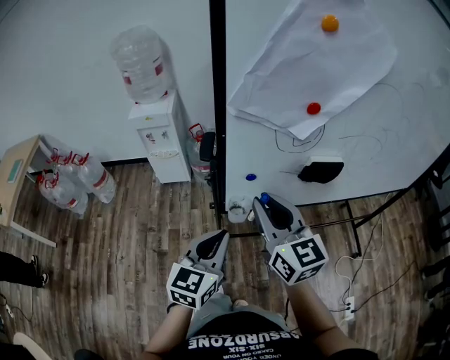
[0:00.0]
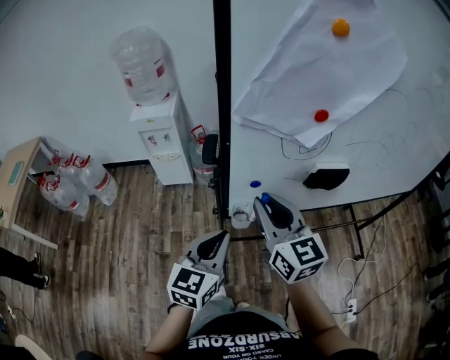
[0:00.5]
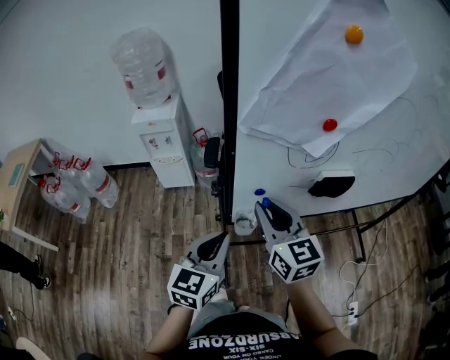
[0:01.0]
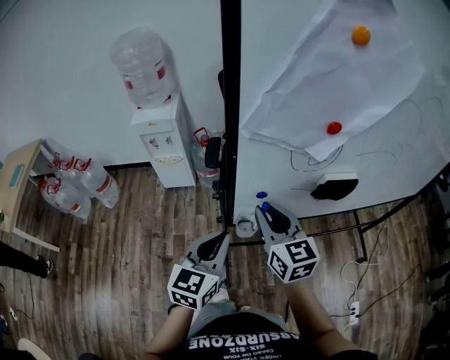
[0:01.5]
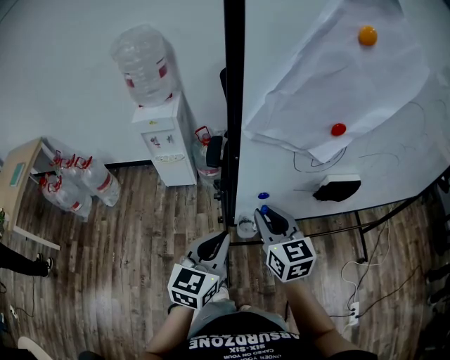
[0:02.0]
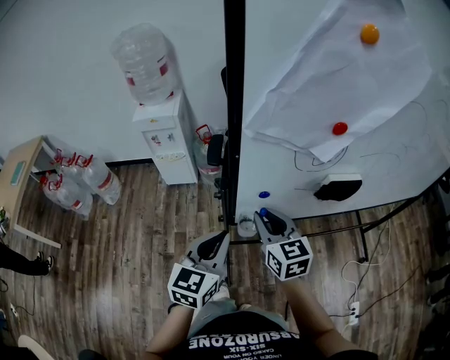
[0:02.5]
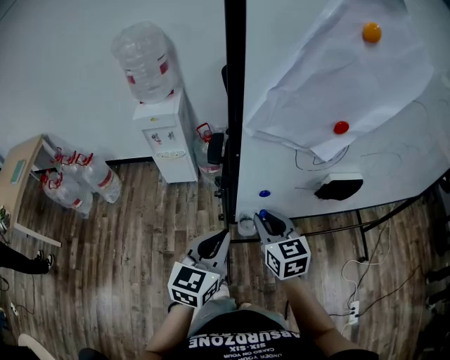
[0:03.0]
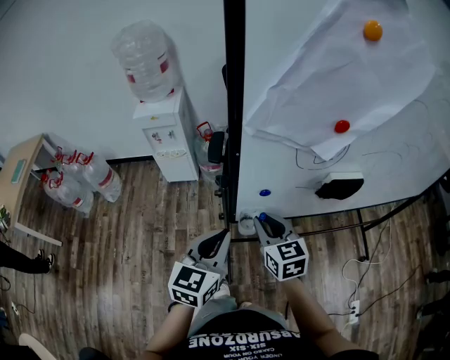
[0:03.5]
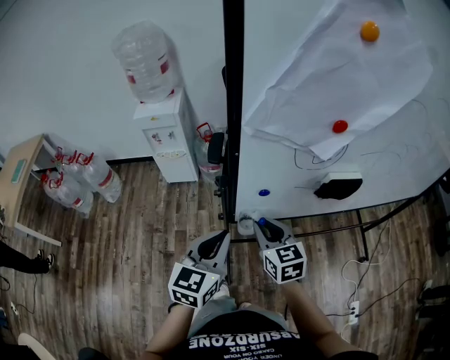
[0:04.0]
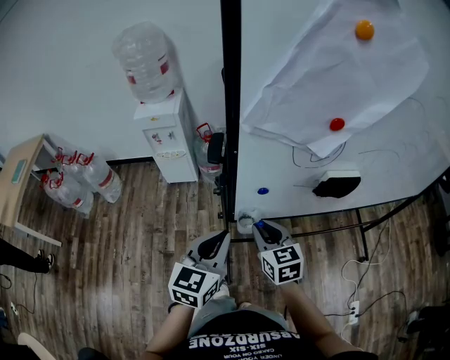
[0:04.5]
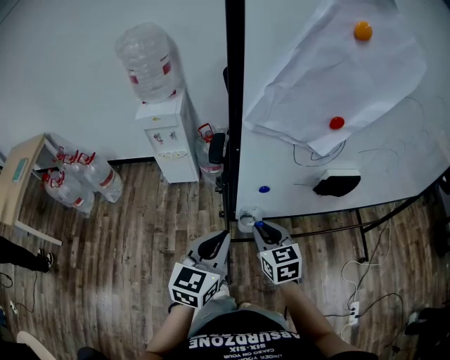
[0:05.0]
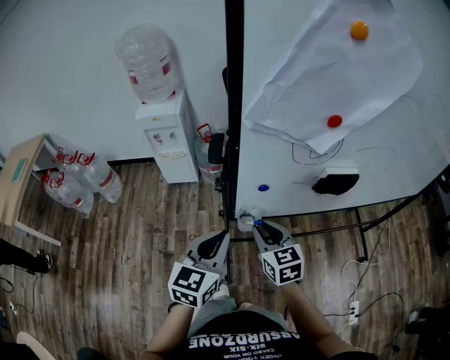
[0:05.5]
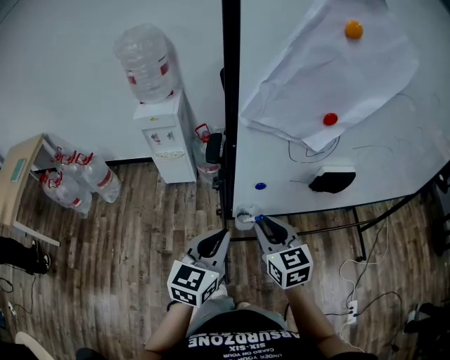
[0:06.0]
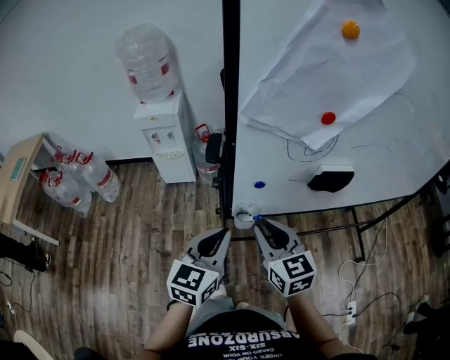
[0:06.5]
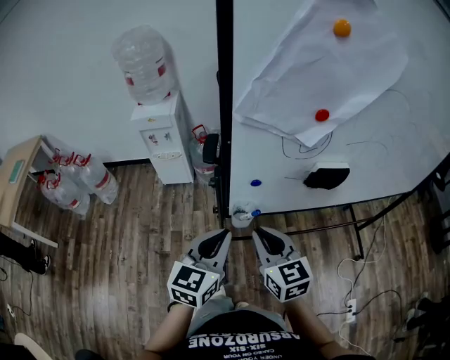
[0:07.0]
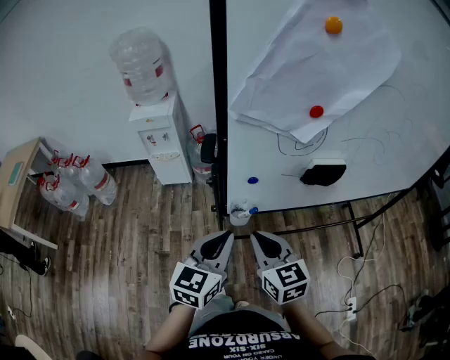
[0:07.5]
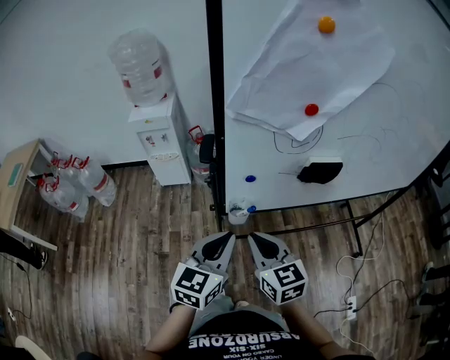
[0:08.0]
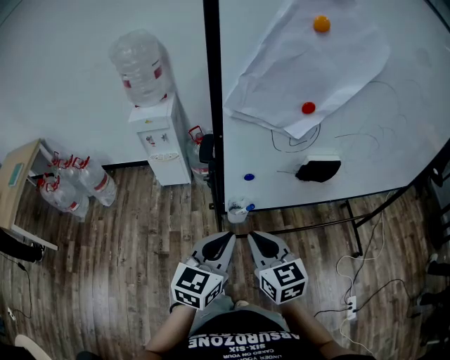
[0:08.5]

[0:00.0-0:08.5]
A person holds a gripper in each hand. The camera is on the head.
0:00.0 to 0:02.0: The right gripper shifts approximately 10 cm downward and forward, while the left gripper goes about 5 cm forward.
0:02.0 to 0:04.0: The right gripper goes roughly 5 cm downward.
0:04.0 to 0:06.5: The right gripper travels upward and backward by approximately 10 cm.
0:06.5 to 0:08.5: The left gripper ends up approximately 5 cm from where it was; the right gripper travels backward by about 5 cm.

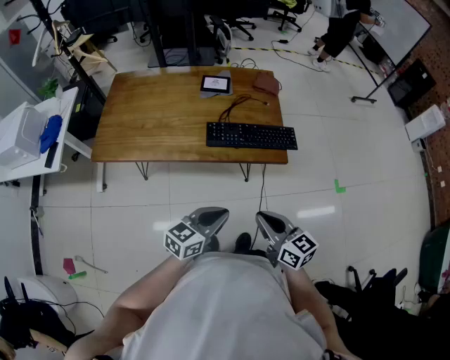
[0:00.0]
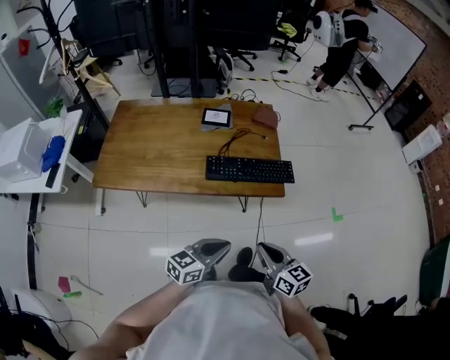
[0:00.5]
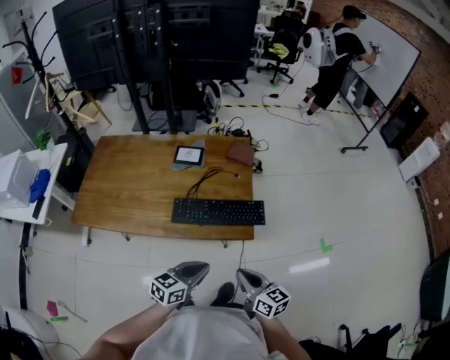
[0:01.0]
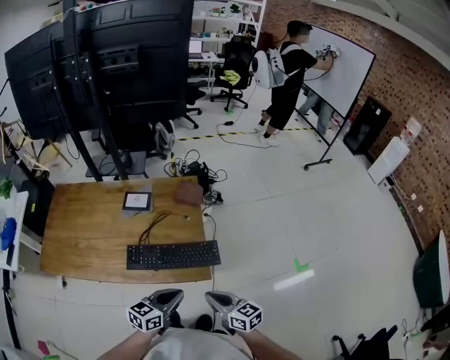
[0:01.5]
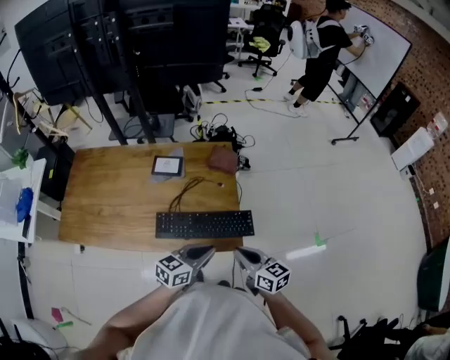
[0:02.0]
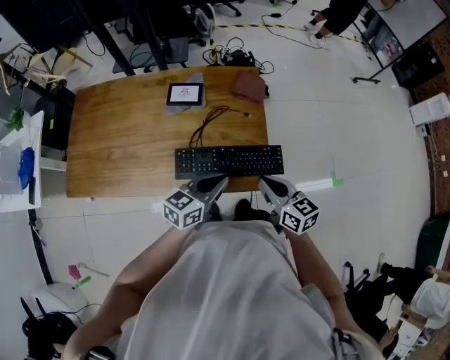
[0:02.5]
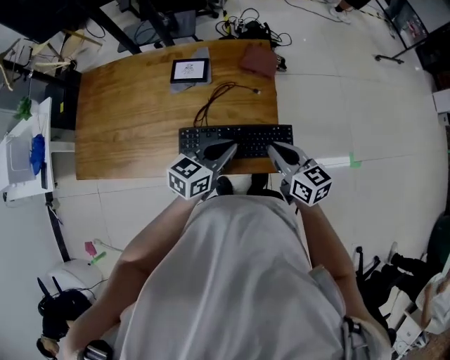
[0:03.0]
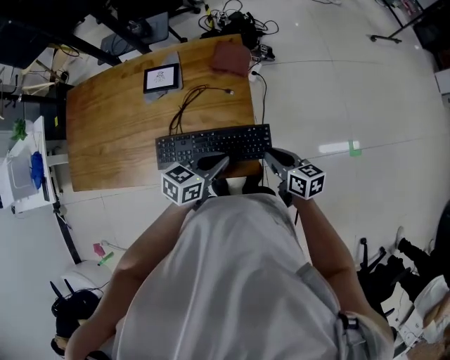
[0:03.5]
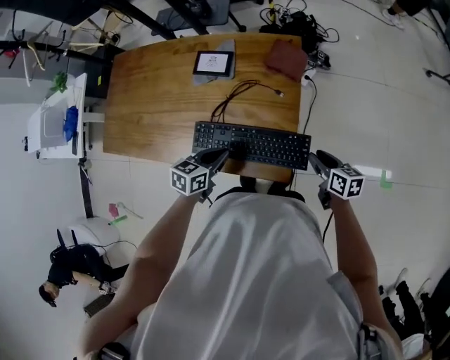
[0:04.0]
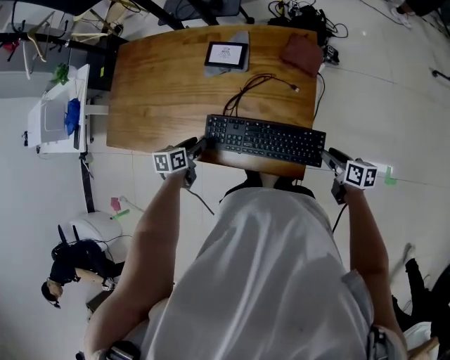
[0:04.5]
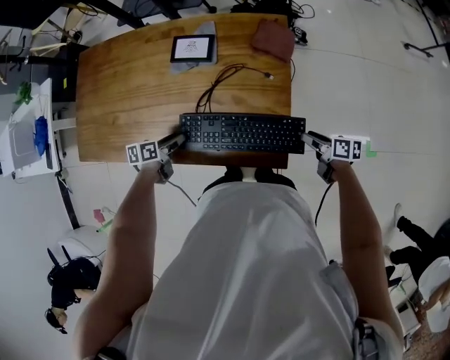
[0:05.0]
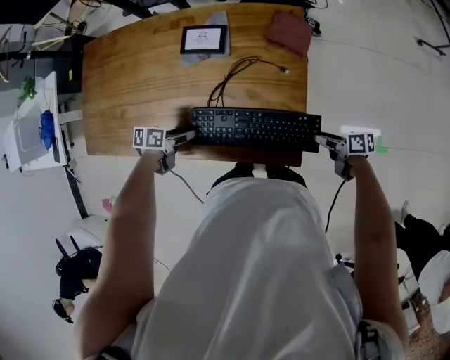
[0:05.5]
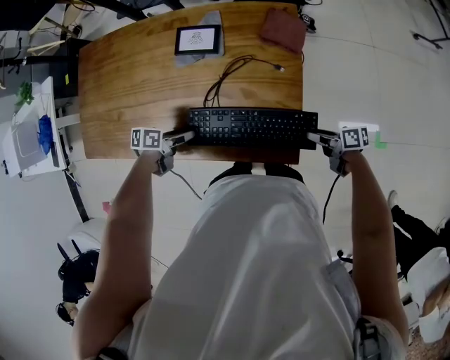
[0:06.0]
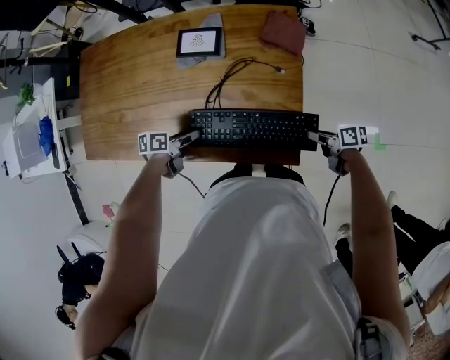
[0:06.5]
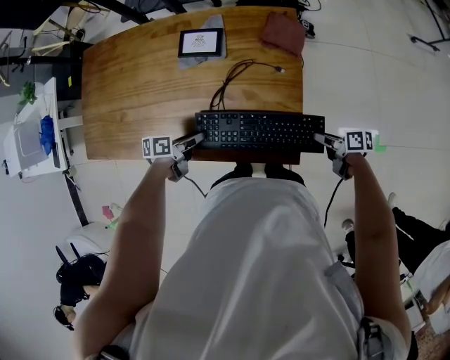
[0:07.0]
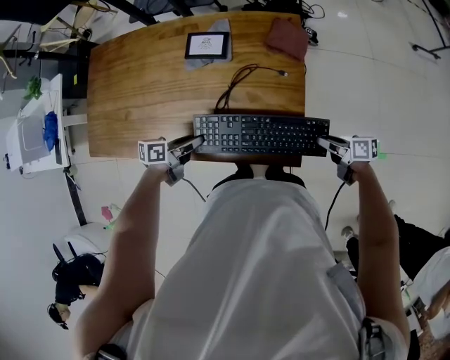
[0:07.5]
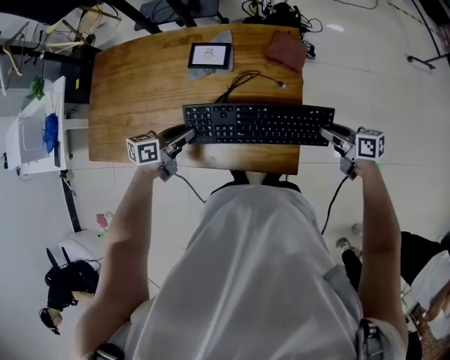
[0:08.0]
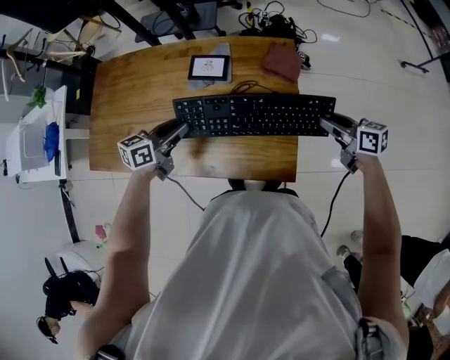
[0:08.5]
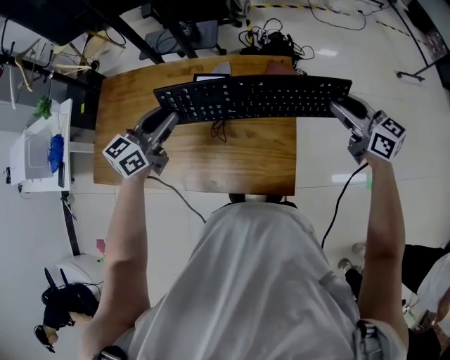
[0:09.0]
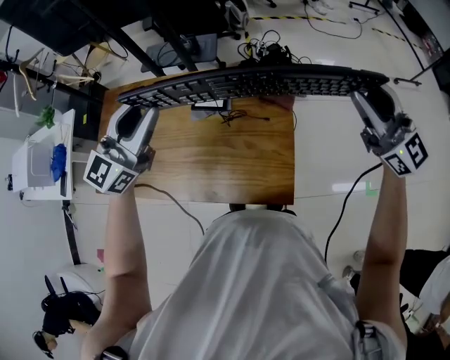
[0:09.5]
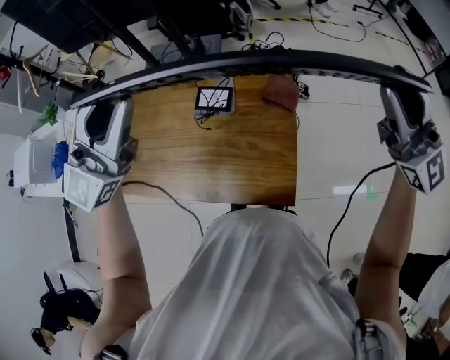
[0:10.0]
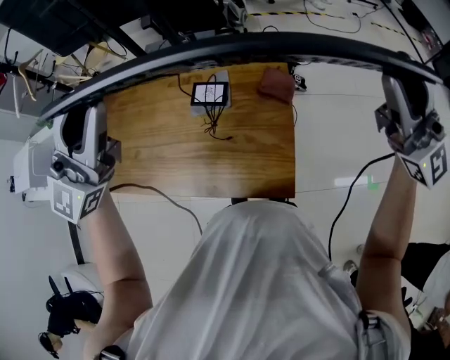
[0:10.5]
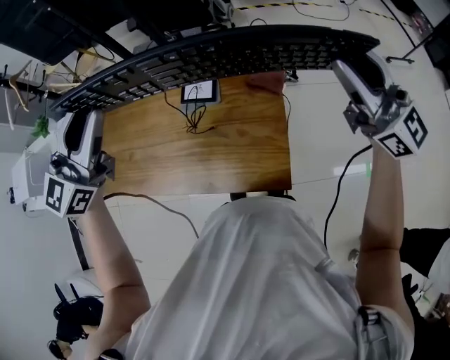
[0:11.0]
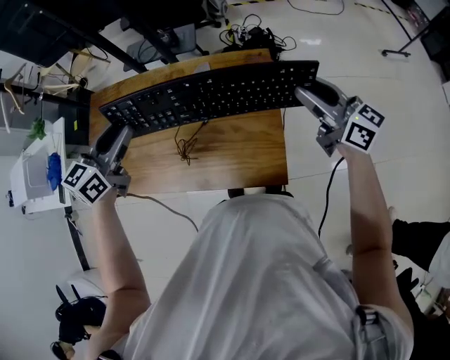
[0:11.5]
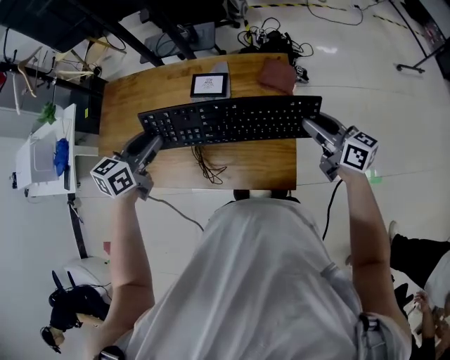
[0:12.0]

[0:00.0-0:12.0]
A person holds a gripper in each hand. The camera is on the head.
0:00.0 to 0:02.0: Both grippers travel together forward and to the right, some 25 cm.
0:02.0 to 0:04.0: The right gripper is displaced downward, forward and to the right by about 20 cm, swivels some 30 degrees, and opens its fingers, while the left gripper moves left and right over approximately 10 cm, changing direction 2 times, and changes its angle by approximately 30 degrees.
0:04.0 to 0:06.0: The right gripper changes place by roughly 5 cm, and changes its angle by about 30 degrees, while the left gripper moves roughly 15 cm, swivels approximately 40 degrees, and opens up.
0:06.0 to 0:08.0: Both grippers move upward, roughly 10 cm. The left gripper swivels roughly 30 degrees, and closes its fingers. Meanwhile the right gripper turns by roughly 30 degrees.
0:08.0 to 0:10.0: The grippers both shift upward by approximately 40 cm. The right gripper twists some 70 degrees counterclockwise, seen from behind, while the left gripper rotates around the line of its fingers by approximately 70 degrees, clockwise from behind.
0:10.0 to 0:12.0: The grippers both shift downward by approximately 30 cm. The right gripper twists roughly 60 degrees clockwise, seen from behind. Meanwhile the left gripper points its fingers approximately 40 degrees further downward.

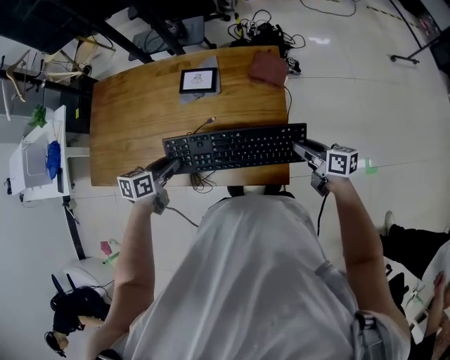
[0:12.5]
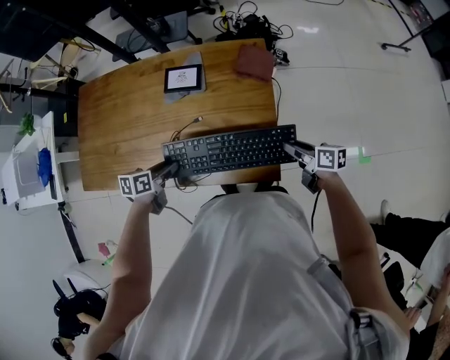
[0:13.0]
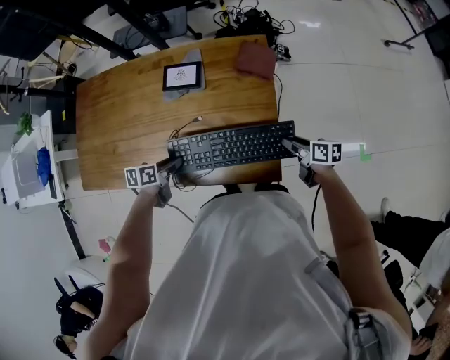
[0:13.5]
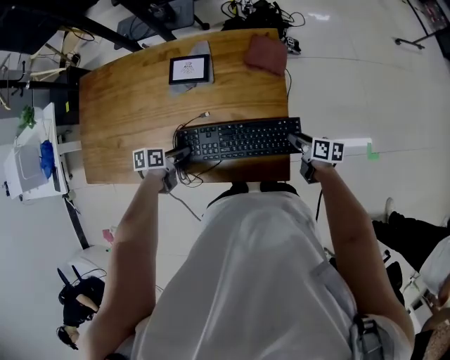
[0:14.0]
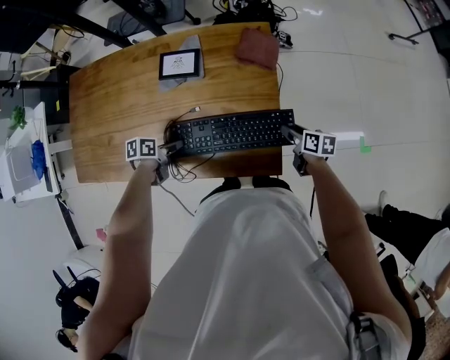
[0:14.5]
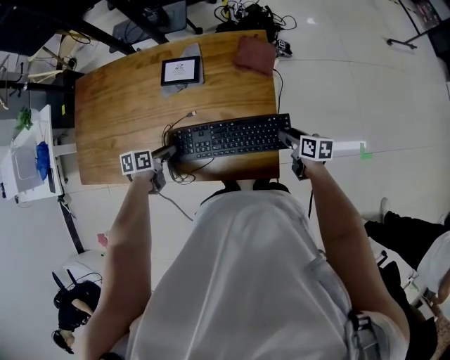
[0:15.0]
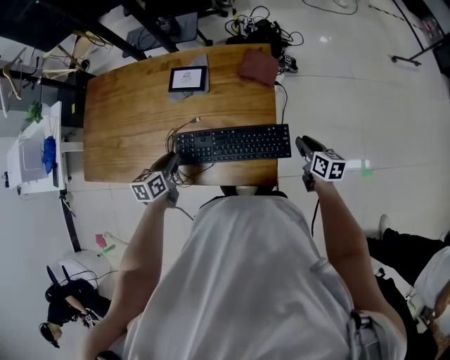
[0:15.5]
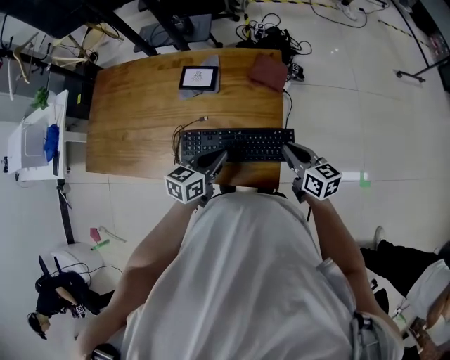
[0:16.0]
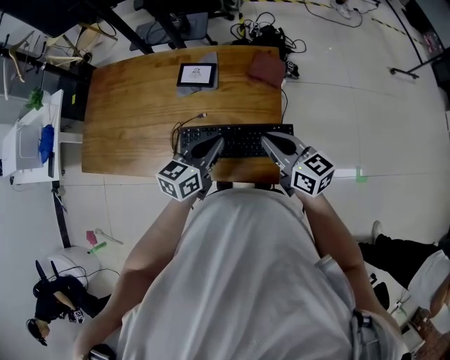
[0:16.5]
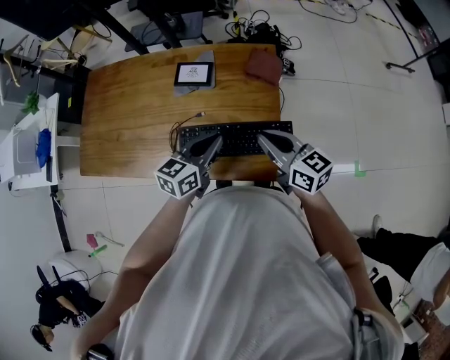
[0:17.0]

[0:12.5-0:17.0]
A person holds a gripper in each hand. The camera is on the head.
0:12.5 to 0:14.5: Both grippers move downward, some 15 cm. The right gripper rotates about 20 degrees. The left gripper turns by about 30 degrees.
0:14.5 to 0:17.0: The left gripper heads upward and to the right, covering approximately 25 cm, tips its fingers upward by some 30 degrees, and closes its fingers. The right gripper heads upward and to the left, covering some 25 cm, points its fingers roughly 30 degrees further upward, and closes up.

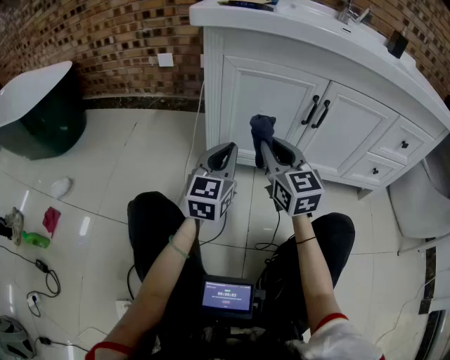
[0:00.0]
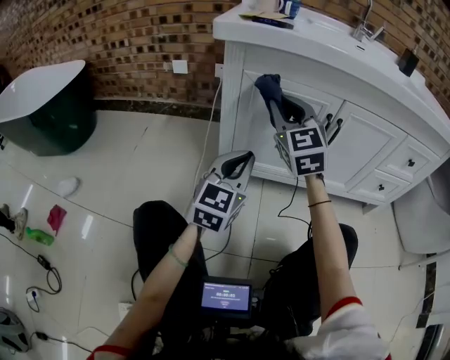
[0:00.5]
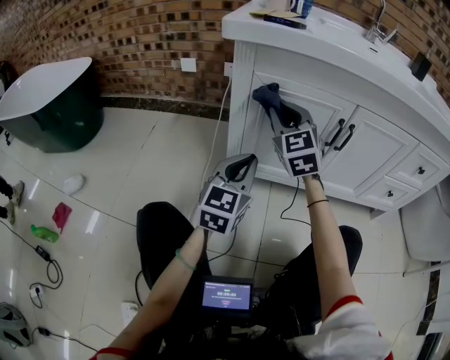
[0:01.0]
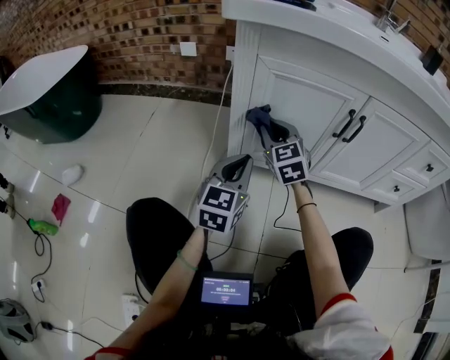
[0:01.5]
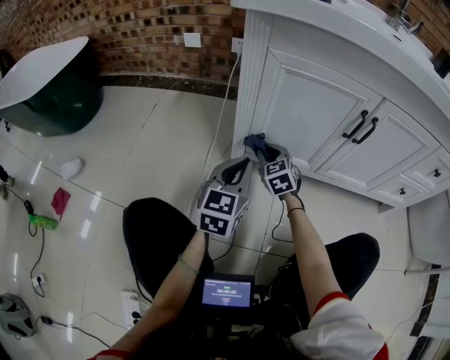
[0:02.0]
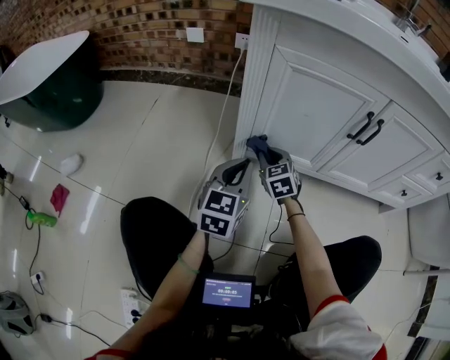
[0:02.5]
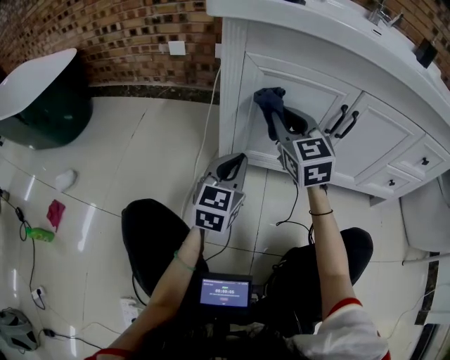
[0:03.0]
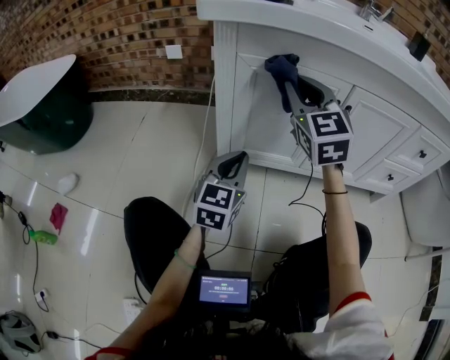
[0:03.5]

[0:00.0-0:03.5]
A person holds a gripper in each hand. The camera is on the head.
0:00.0 to 0:02.0: The left gripper heads downward, covering approximately 5 cm. Meanwhile the right gripper heads downward and forward, covering roughly 25 cm, and rotates approximately 30 degrees.
0:02.0 to 0:03.5: The left gripper ends up about 5 cm from where it was. The right gripper goes about 35 cm upward, and swivels roughly 30 degrees.
